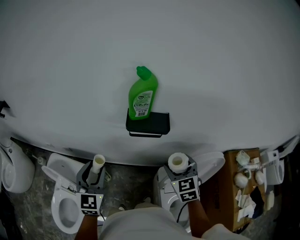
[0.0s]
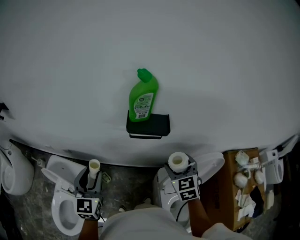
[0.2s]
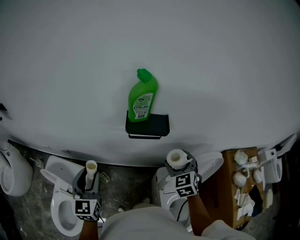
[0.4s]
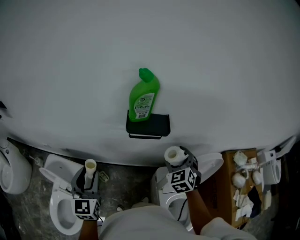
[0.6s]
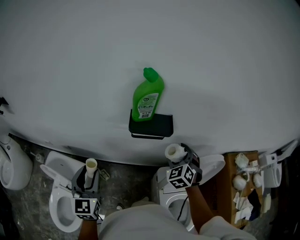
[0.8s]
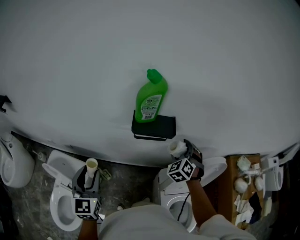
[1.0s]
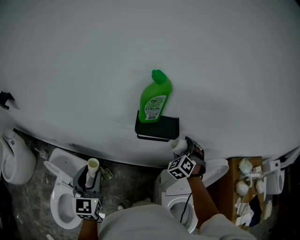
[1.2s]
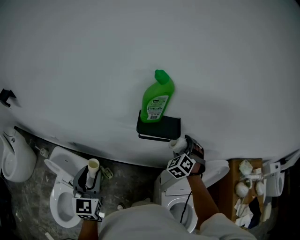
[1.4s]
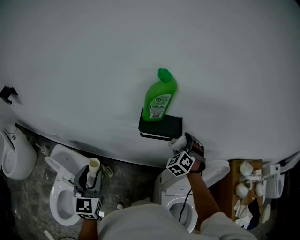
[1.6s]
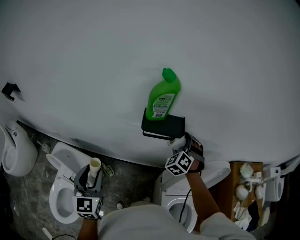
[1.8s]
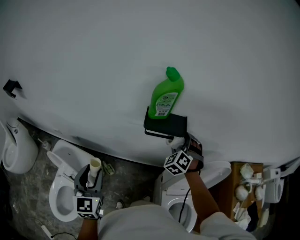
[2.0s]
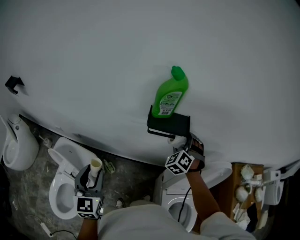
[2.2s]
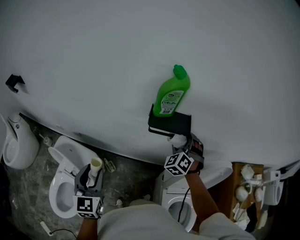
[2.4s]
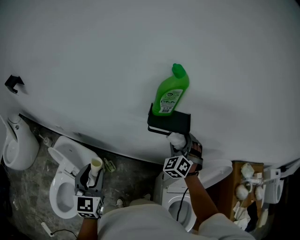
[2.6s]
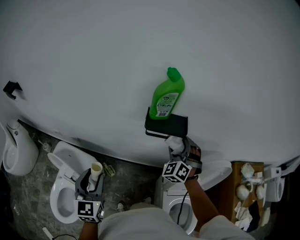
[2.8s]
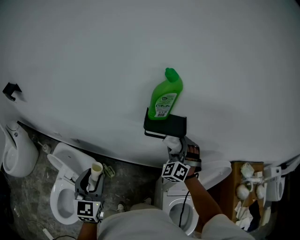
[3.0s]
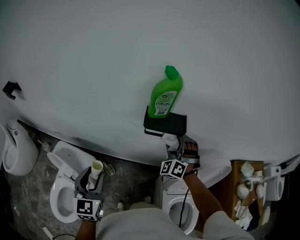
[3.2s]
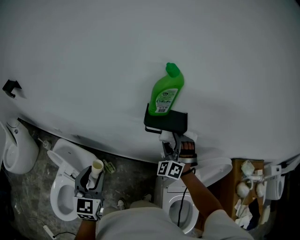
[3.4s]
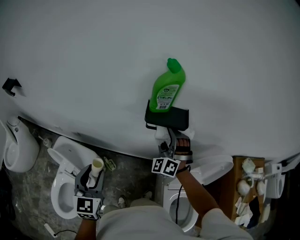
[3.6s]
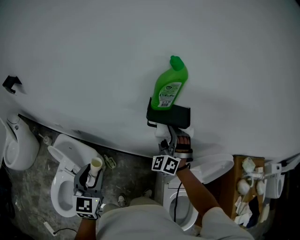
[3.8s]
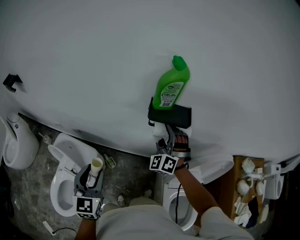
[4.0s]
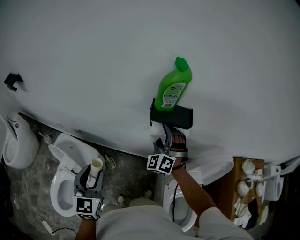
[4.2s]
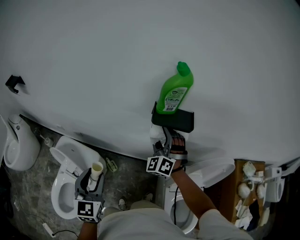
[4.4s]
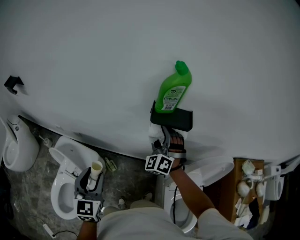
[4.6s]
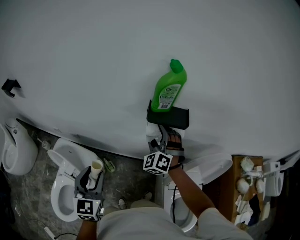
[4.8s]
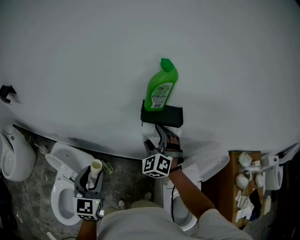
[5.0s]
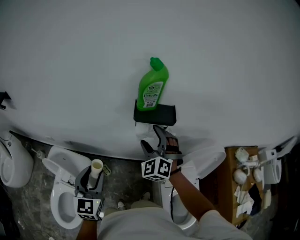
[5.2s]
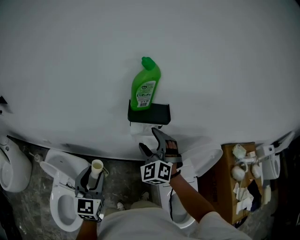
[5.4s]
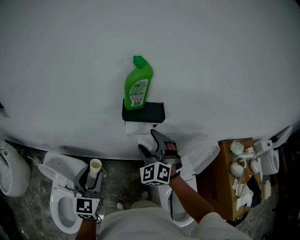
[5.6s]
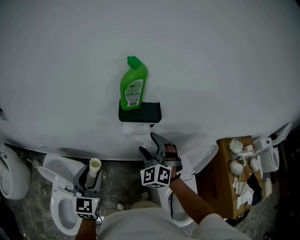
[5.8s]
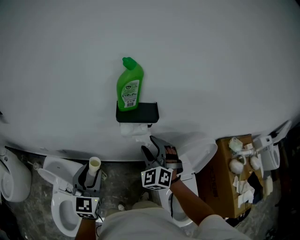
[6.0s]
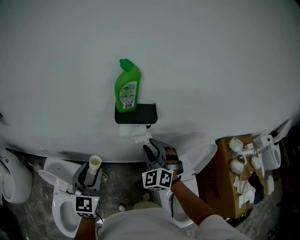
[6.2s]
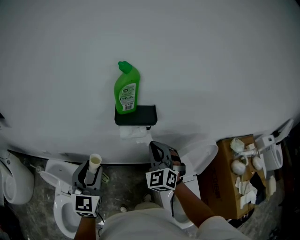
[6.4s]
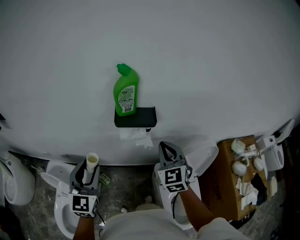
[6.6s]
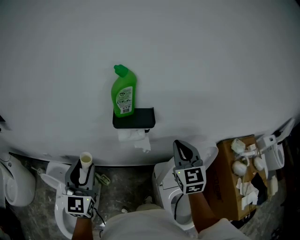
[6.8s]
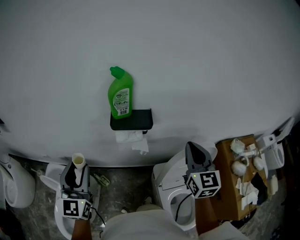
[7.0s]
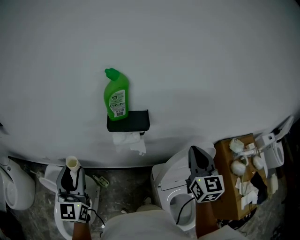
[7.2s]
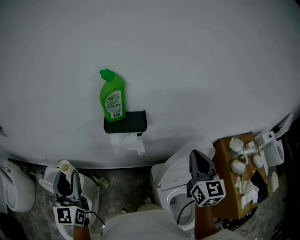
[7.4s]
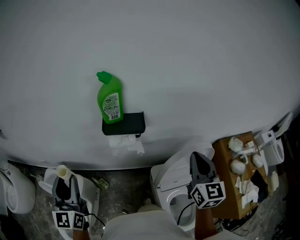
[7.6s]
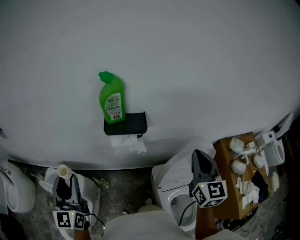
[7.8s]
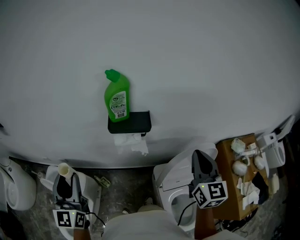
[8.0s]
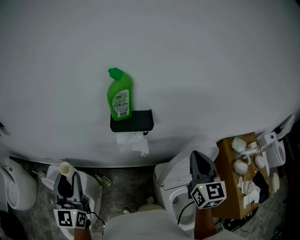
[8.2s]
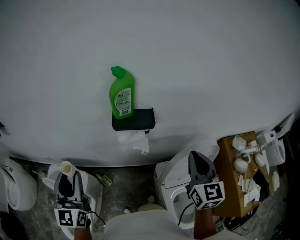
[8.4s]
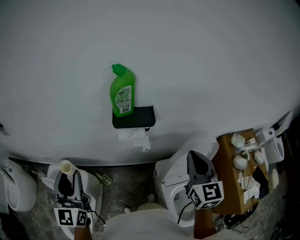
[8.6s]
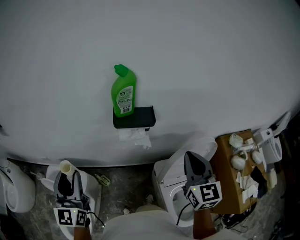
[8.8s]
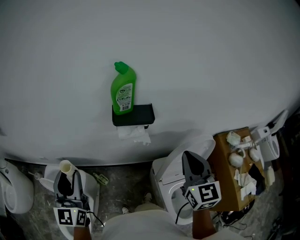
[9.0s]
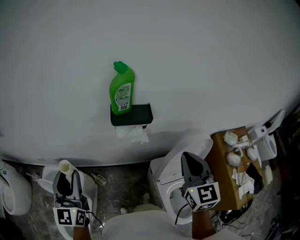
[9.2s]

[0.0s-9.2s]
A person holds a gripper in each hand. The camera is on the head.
0.0s to 1.6s: The right gripper is displaced forward by approximately 15 cm, and turns by some 40 degrees, while the left gripper changes place by approximately 5 cm.
1.6s to 3.0s: The right gripper shifts about 5 cm to the left.
3.0s to 4.6s: The right gripper moves to the left, some 10 cm.
4.6s to 6.2s: The left gripper goes roughly 10 cm to the right. Meanwhile the right gripper heads backward and to the right, covering approximately 10 cm, and closes its fingers.
6.2s to 7.6s: The right gripper travels to the right and upward by approximately 25 cm, twists roughly 50 degrees clockwise, seen from behind, and closes up; the left gripper shifts about 10 cm upward.
7.6s to 9.2s: The right gripper moves to the left, approximately 10 cm.

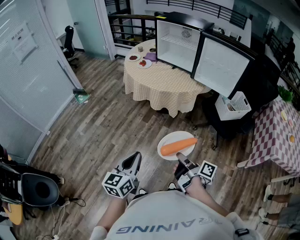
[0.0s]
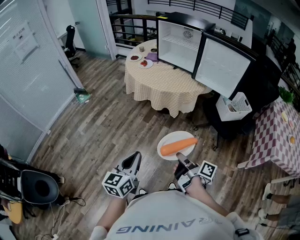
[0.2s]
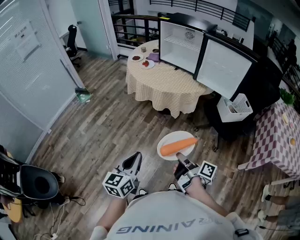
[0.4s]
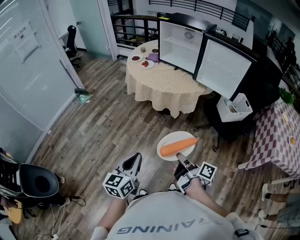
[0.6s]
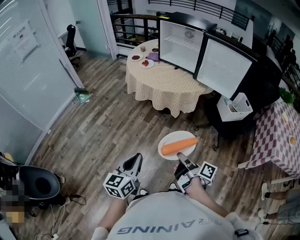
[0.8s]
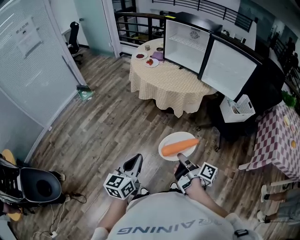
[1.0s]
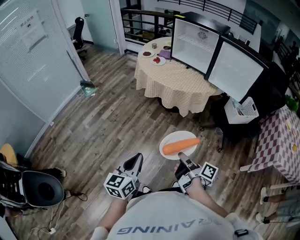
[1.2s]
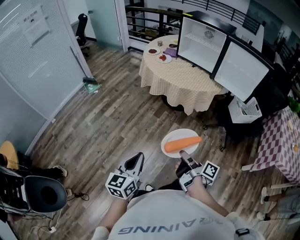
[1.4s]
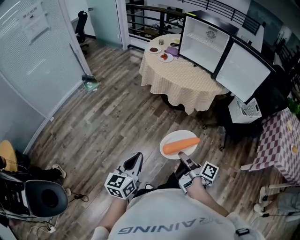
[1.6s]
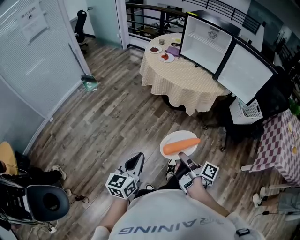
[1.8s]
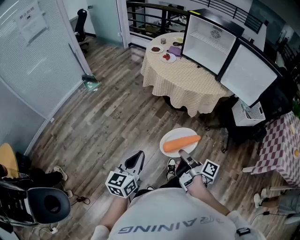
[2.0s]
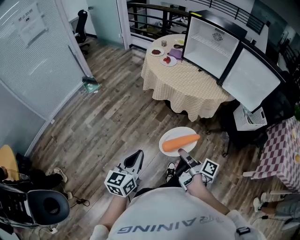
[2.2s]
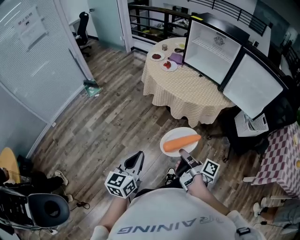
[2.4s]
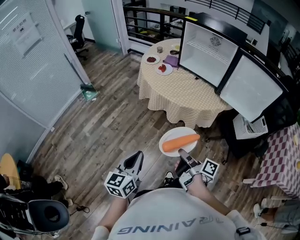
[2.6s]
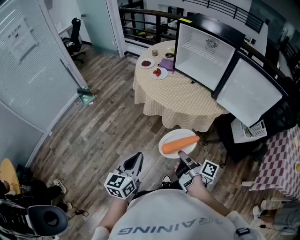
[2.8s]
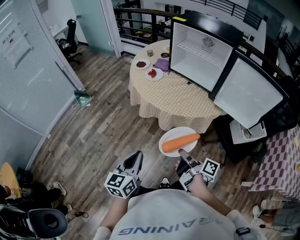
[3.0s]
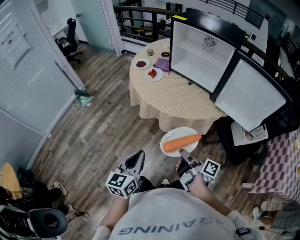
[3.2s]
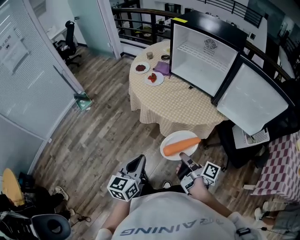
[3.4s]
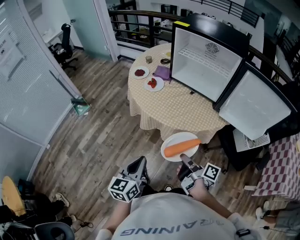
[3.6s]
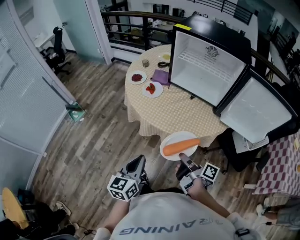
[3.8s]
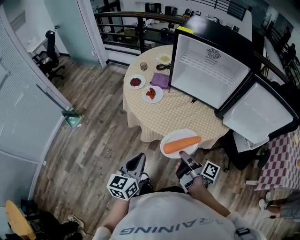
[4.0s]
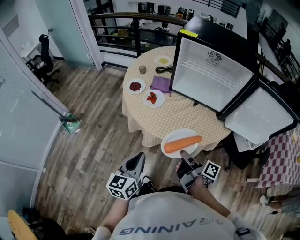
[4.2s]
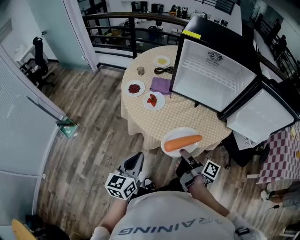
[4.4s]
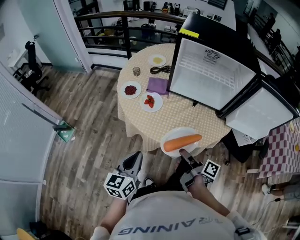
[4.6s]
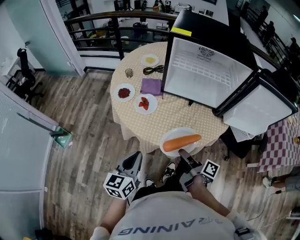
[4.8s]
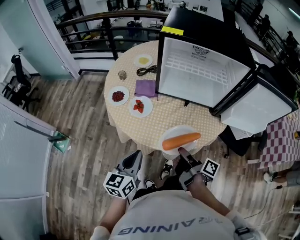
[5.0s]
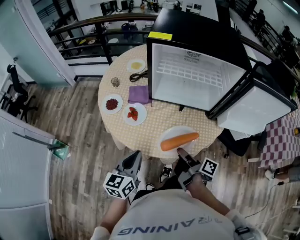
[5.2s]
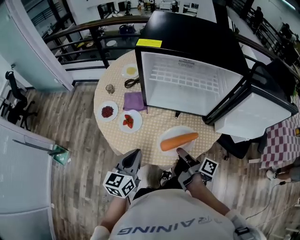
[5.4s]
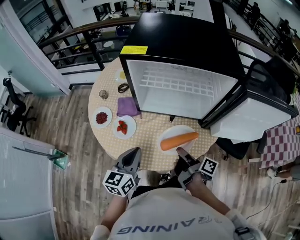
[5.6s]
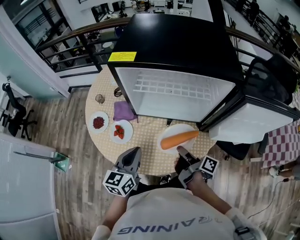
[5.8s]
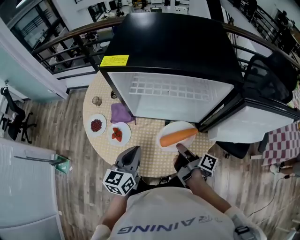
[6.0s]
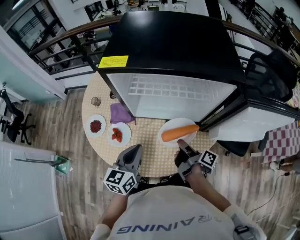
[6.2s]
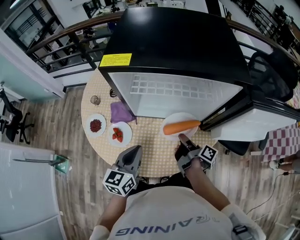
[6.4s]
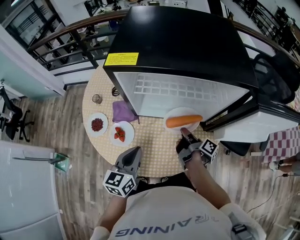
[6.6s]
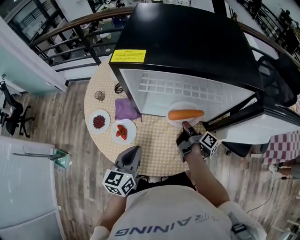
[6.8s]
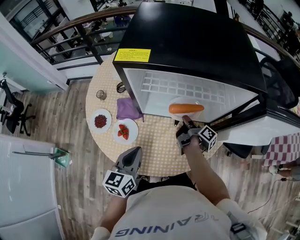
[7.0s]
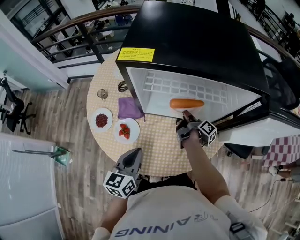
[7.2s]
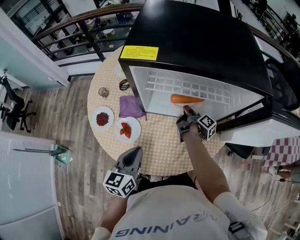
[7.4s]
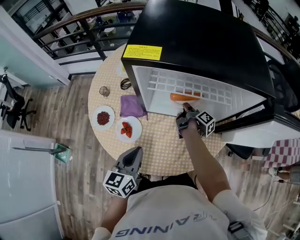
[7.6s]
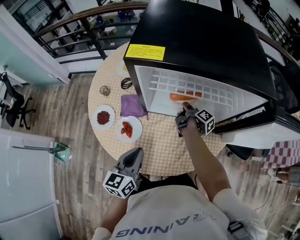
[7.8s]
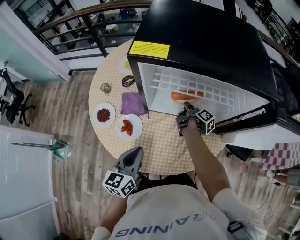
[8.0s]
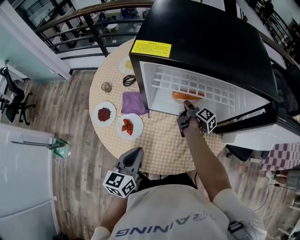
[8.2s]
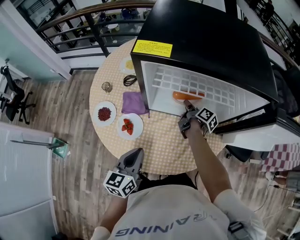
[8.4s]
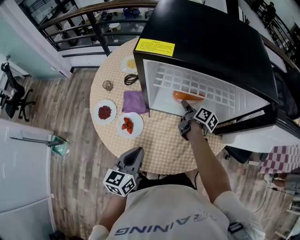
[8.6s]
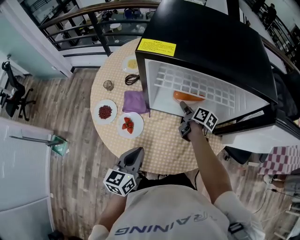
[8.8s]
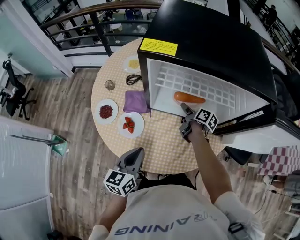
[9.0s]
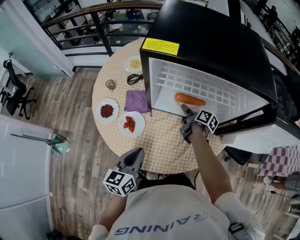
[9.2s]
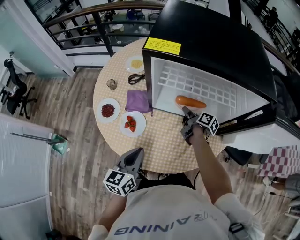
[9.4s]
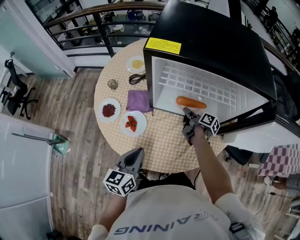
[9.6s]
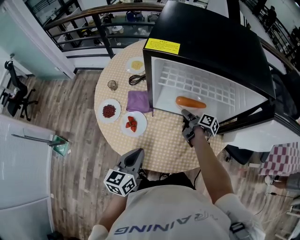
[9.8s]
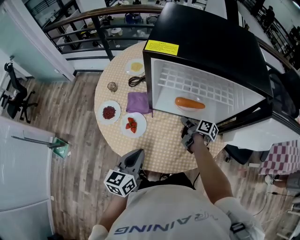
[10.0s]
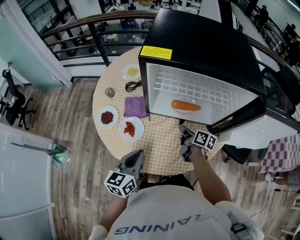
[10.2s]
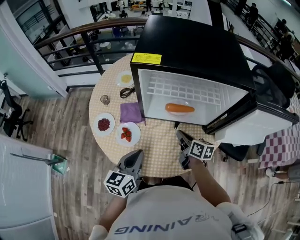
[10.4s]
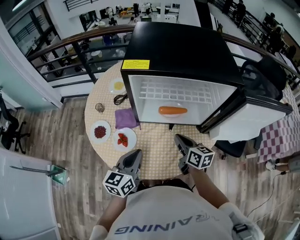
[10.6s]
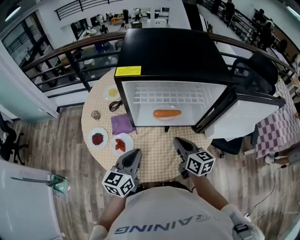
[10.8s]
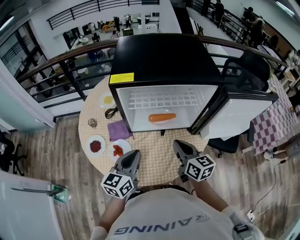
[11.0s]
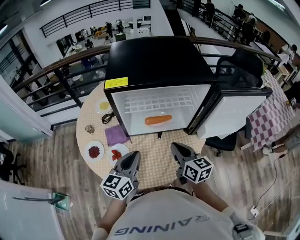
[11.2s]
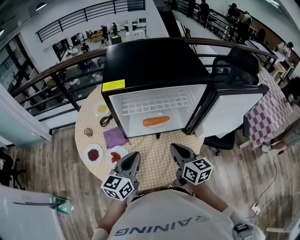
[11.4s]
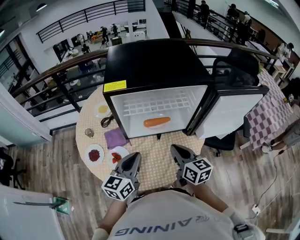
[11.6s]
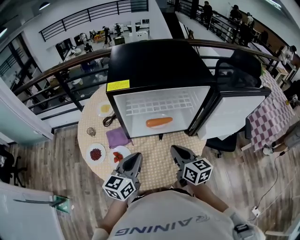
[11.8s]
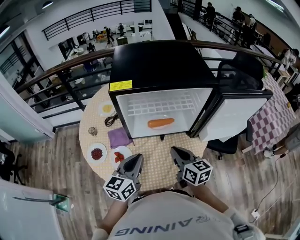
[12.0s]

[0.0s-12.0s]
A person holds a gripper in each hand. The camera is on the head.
0.0s to 1.6s: The left gripper moves approximately 15 cm.
1.6s to 3.0s: The left gripper ends up about 30 cm from where it was.
3.0s to 4.4s: The left gripper changes place by roughly 30 cm.
4.4s to 6.0s: The left gripper shifts by approximately 30 cm.
6.0s to 7.6s: The left gripper shifts by approximately 5 cm.
10.4s to 12.0s: The left gripper heads upward, covering roughly 5 cm.

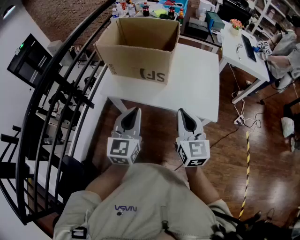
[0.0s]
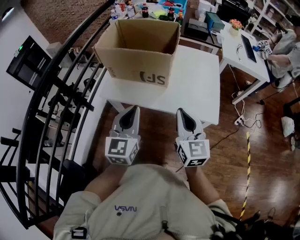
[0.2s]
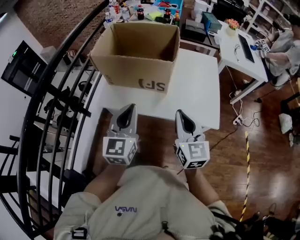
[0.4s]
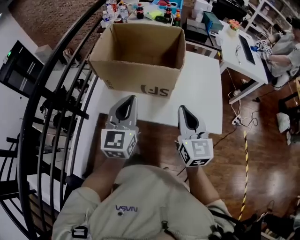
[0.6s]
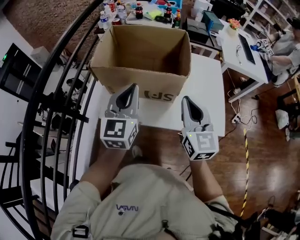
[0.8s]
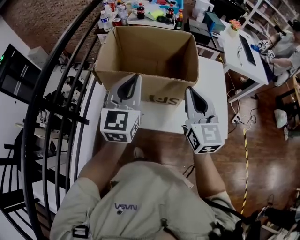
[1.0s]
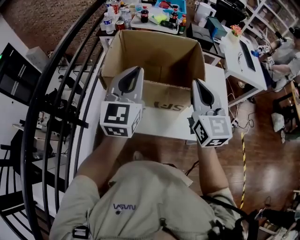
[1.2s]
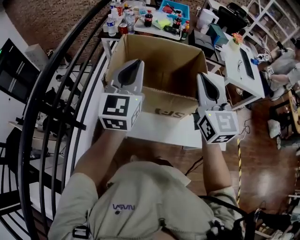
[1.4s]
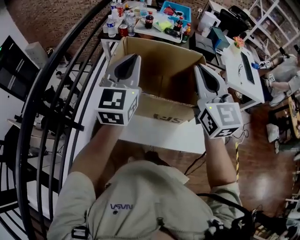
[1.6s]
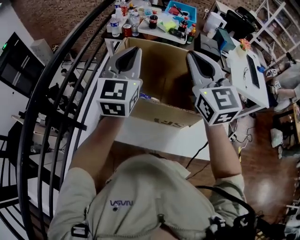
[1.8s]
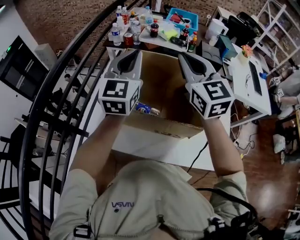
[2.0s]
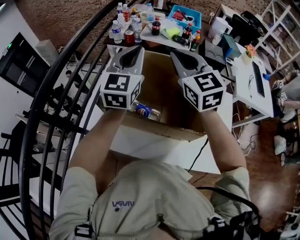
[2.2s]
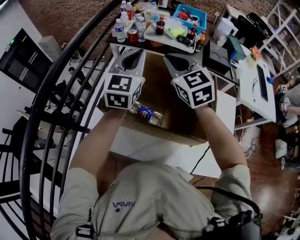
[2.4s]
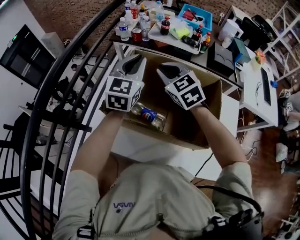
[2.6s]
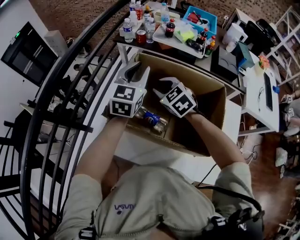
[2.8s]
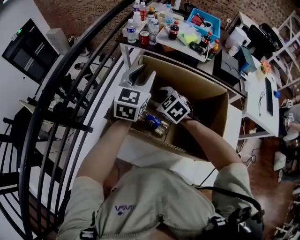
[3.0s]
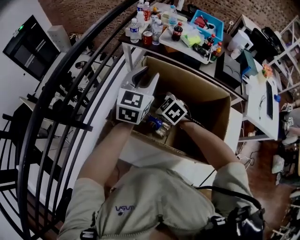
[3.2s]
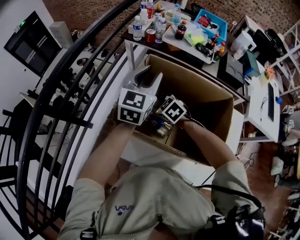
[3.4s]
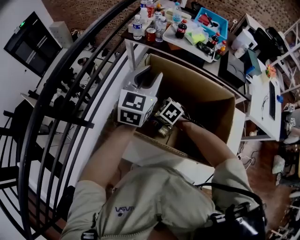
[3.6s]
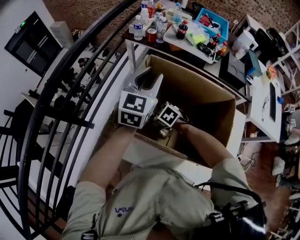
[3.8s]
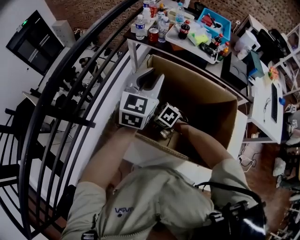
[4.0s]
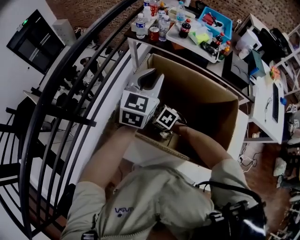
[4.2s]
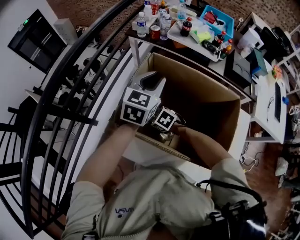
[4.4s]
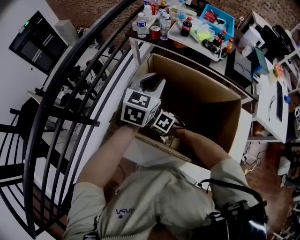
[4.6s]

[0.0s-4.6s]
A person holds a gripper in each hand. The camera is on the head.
0.0s to 1.6s: Both grippers move forward, upward and to the left, about 40 cm.
1.6s to 3.0s: The right gripper goes about 35 cm downward, forward and to the left, tips its fingers downward by approximately 40 degrees, and opens up, while the left gripper goes approximately 20 cm forward and downward, and opens up.
3.0s to 4.6s: The right gripper travels downward, to the left and backward by approximately 20 cm, rotates roughly 30 degrees, and opens.
